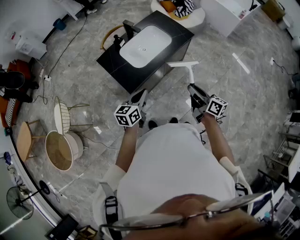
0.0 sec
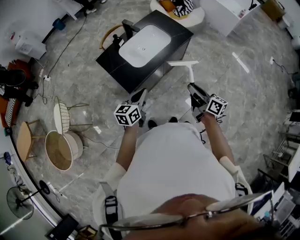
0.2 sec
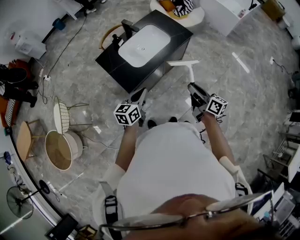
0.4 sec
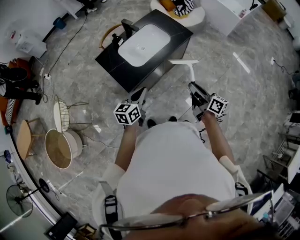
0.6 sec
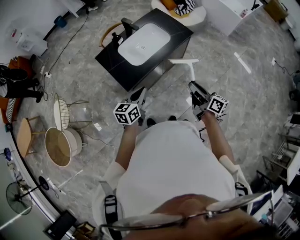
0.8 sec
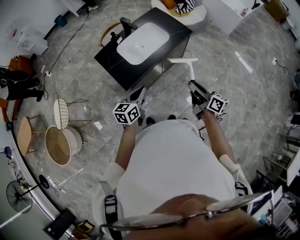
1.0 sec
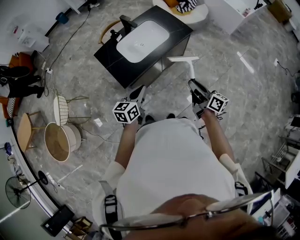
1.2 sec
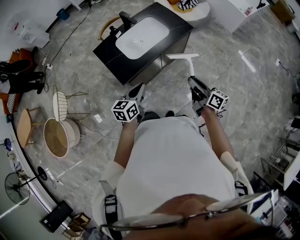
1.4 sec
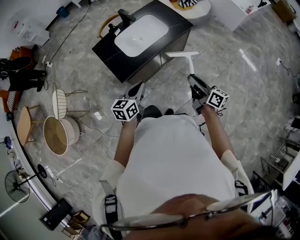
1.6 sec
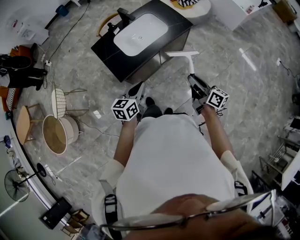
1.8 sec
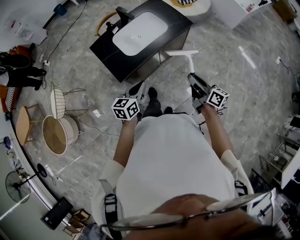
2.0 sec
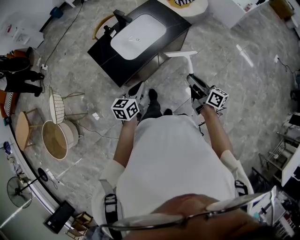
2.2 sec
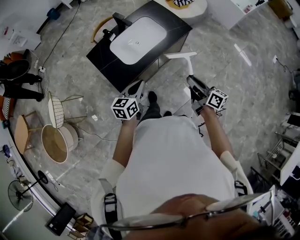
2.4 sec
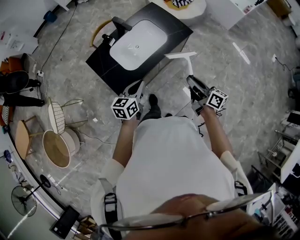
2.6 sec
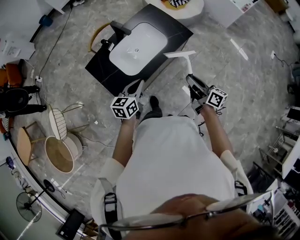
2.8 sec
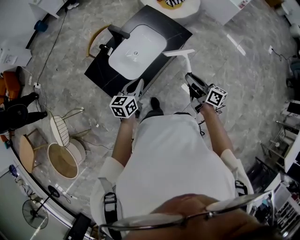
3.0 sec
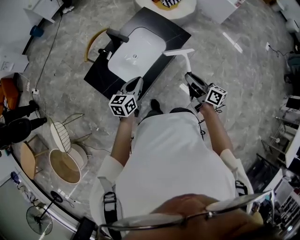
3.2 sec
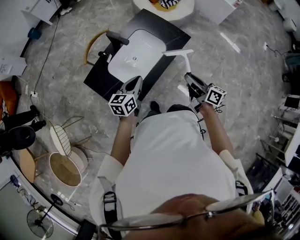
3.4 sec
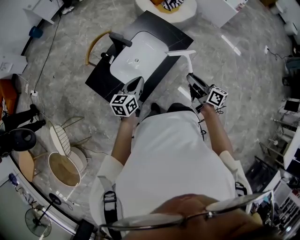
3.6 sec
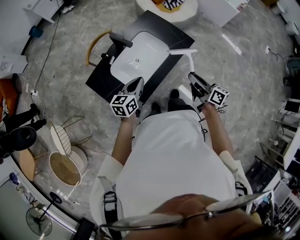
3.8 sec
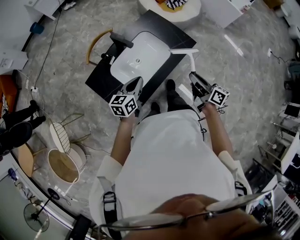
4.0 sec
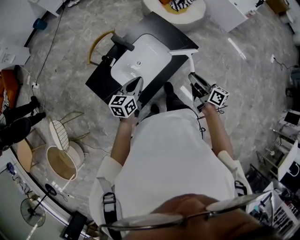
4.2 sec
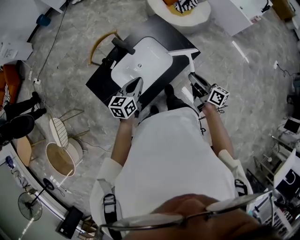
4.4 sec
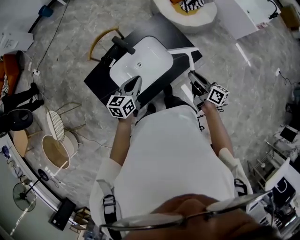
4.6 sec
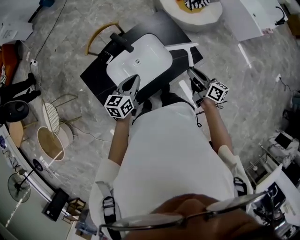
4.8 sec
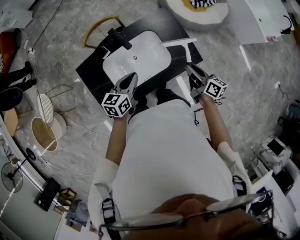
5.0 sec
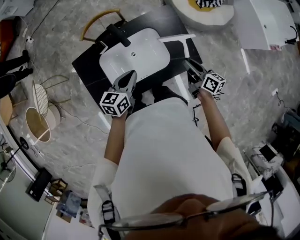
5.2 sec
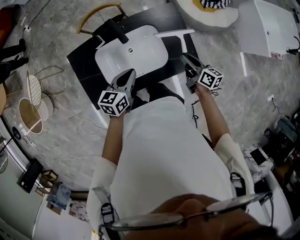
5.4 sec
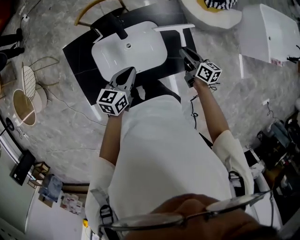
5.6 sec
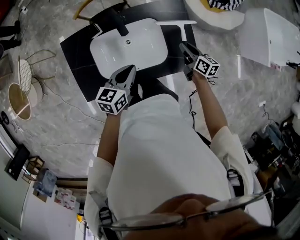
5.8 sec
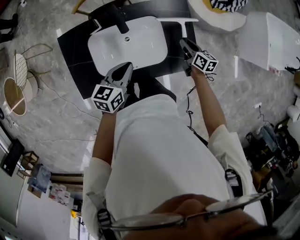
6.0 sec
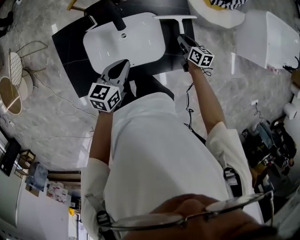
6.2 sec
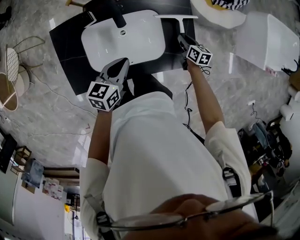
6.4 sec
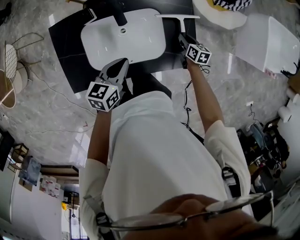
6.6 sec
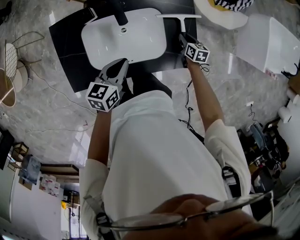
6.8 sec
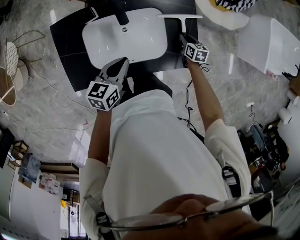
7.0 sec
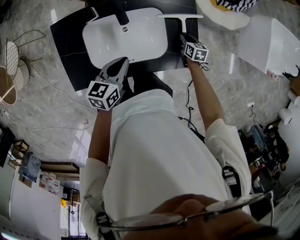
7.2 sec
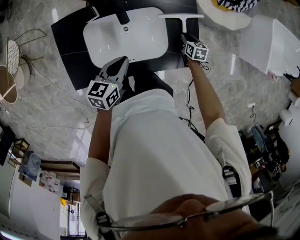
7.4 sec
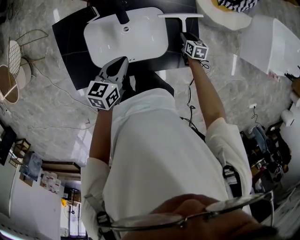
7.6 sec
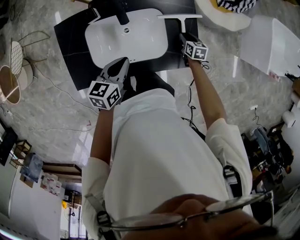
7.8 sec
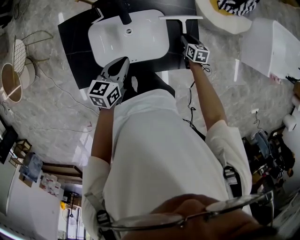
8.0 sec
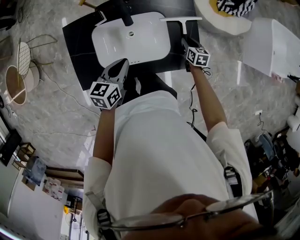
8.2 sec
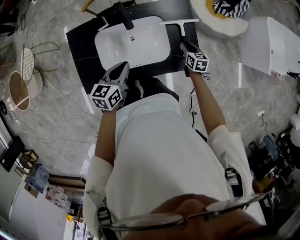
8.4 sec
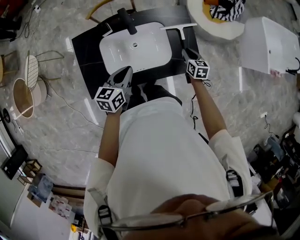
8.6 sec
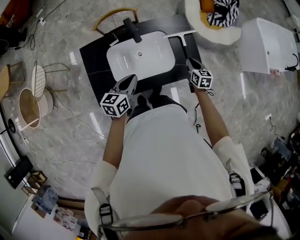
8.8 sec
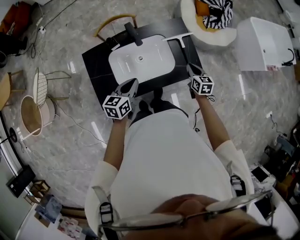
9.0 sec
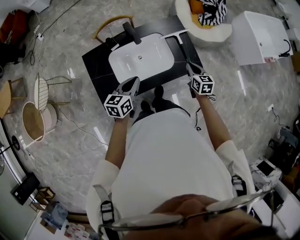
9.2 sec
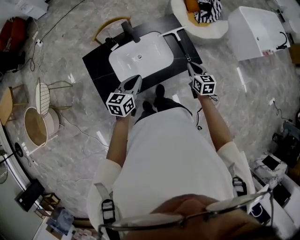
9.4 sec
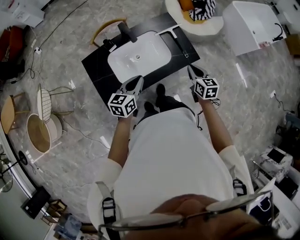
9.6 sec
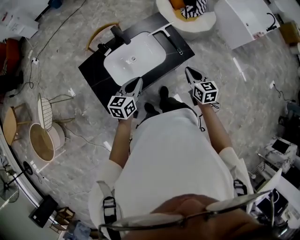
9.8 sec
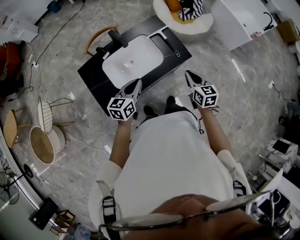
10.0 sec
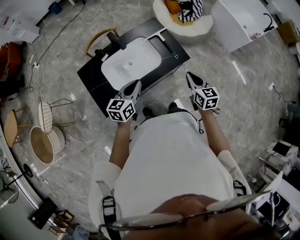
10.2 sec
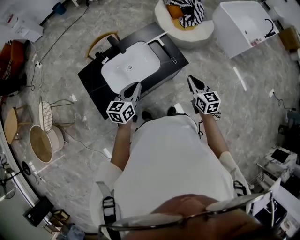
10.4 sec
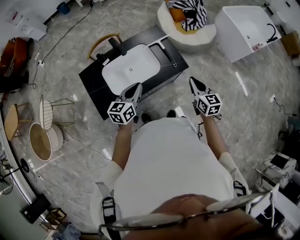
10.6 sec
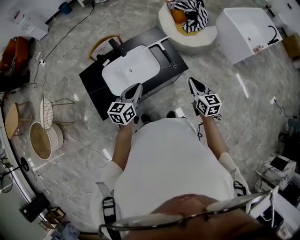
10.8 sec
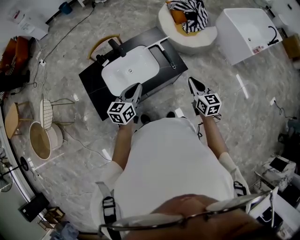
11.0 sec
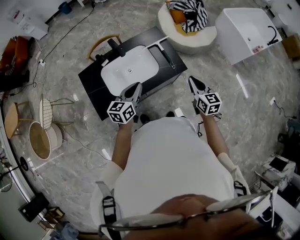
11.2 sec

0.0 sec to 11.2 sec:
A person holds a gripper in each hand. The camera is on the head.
0.0 sec to 1.6 sec: Both grippers move to the right, about 5 cm.
1.6 sec to 3.2 sec: Both grippers move forward, approximately 20 cm.
3.2 sec to 4.8 sec: The left gripper shifts roughly 15 cm forward. The right gripper moves forward, approximately 25 cm.
4.8 sec to 6.4 sec: The right gripper shifts roughly 30 cm downward and forward, and tilts its fingers about 30 degrees downward. The left gripper moves downward, some 5 cm.
6.4 sec to 8.0 sec: There are only small adjustments of the grippers.
8.0 sec to 9.6 sec: The right gripper moves upward and backward, approximately 35 cm, turns by approximately 20 degrees, and closes up. Meanwhile the left gripper travels backward and upward by approximately 15 cm, and changes its angle by approximately 20 degrees.
9.6 sec to 11.2 sec: The right gripper moves to the right and upward, roughly 10 cm. Meanwhile the left gripper goes about 10 cm to the right.

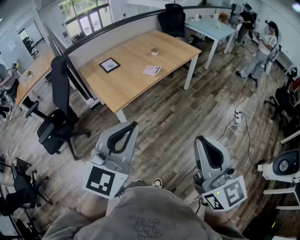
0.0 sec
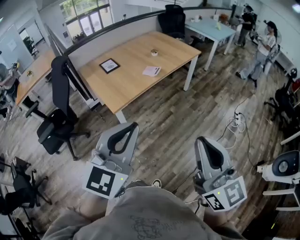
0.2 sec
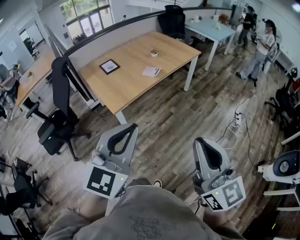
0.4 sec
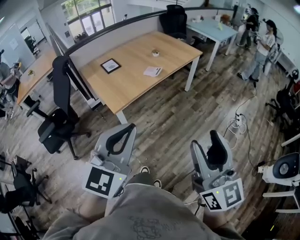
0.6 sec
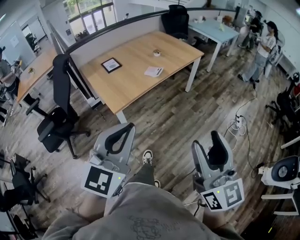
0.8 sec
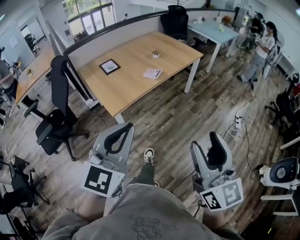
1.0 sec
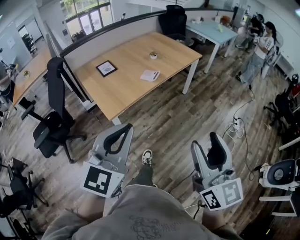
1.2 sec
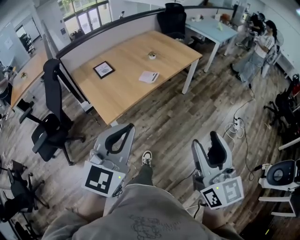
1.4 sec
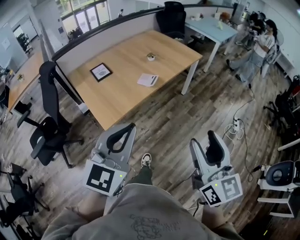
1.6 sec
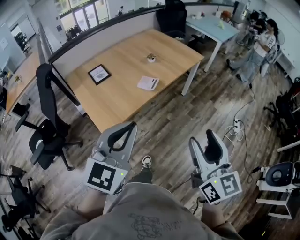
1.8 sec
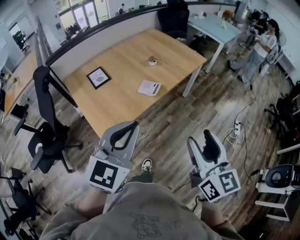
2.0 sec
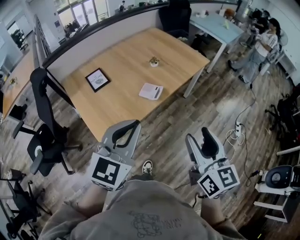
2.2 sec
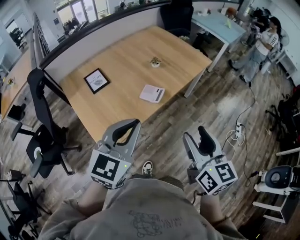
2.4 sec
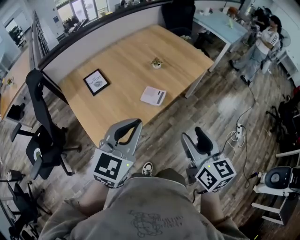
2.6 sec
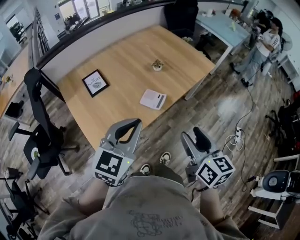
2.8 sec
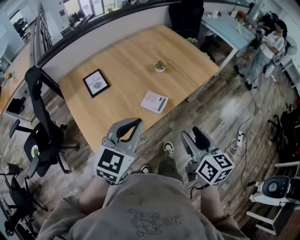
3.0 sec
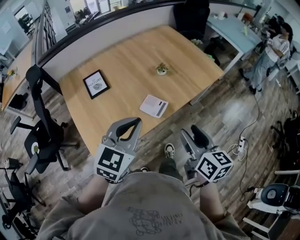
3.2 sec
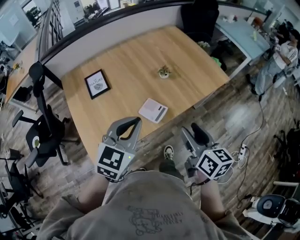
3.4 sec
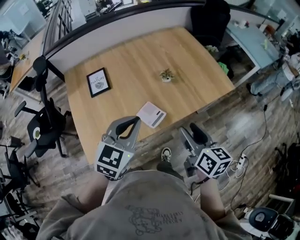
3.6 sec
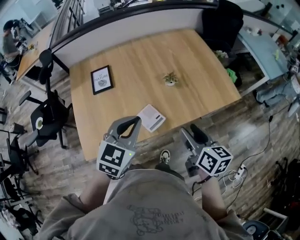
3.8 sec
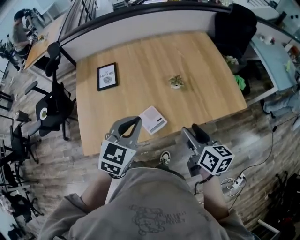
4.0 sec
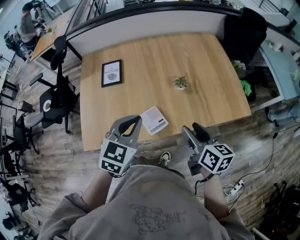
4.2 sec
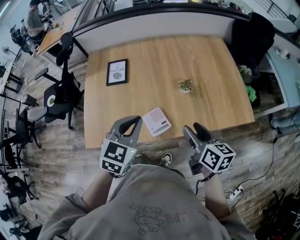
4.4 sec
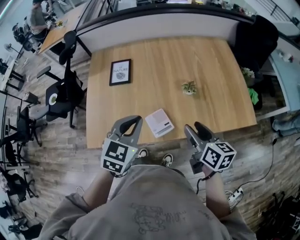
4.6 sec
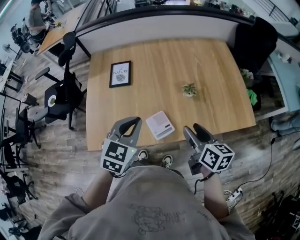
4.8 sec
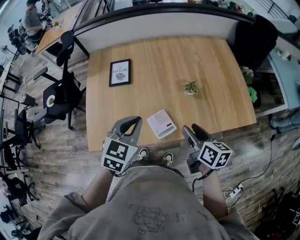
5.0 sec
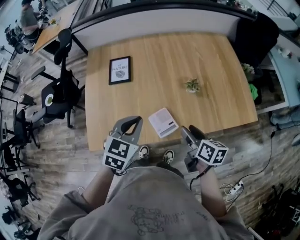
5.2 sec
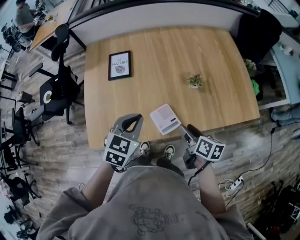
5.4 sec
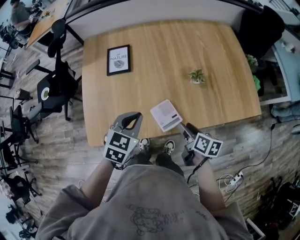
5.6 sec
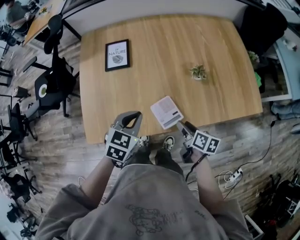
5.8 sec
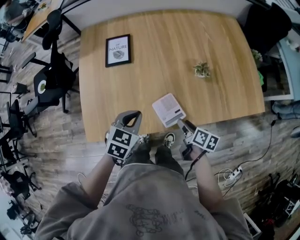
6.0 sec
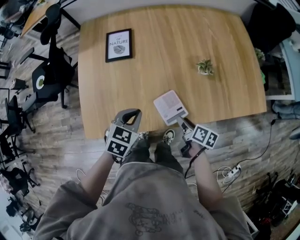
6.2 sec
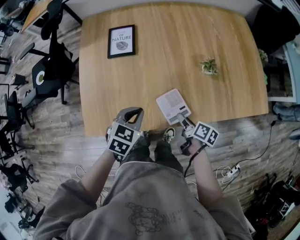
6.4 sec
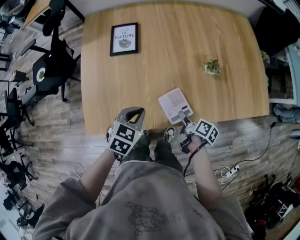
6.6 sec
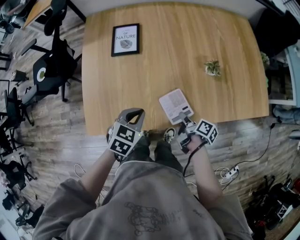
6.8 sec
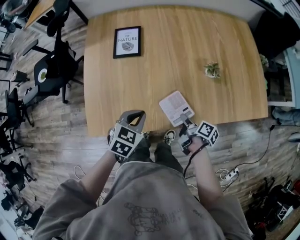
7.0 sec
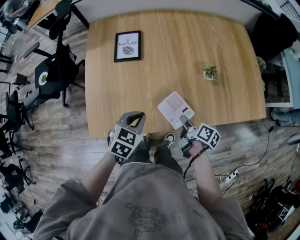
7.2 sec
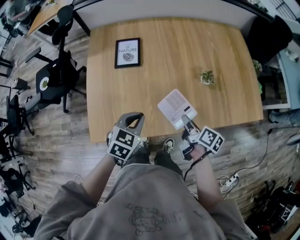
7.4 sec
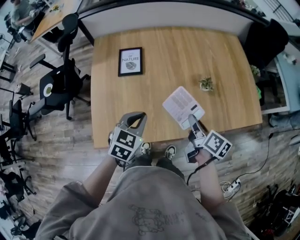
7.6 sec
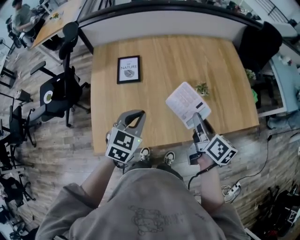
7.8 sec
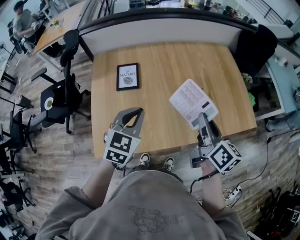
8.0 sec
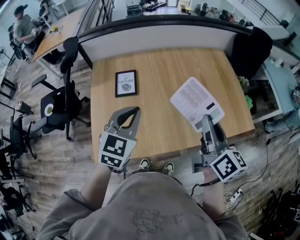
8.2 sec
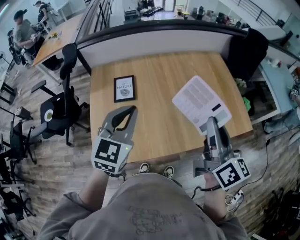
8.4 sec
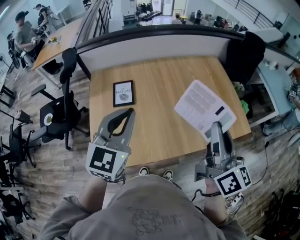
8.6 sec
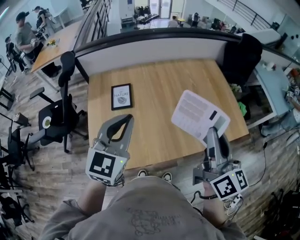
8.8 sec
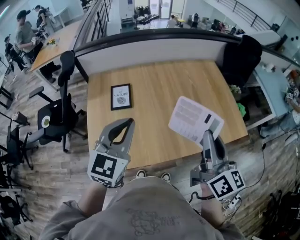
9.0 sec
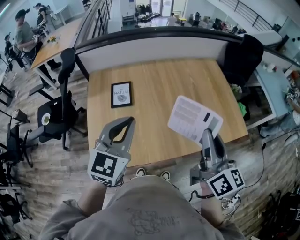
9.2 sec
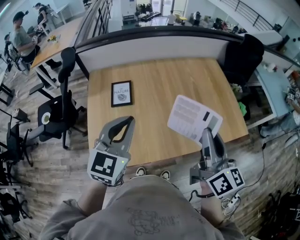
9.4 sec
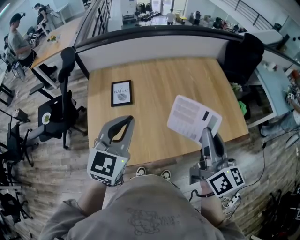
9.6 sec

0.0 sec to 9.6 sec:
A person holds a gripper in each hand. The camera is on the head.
0.0 sec to 1.6 sec: The two grippers go roughly 20 cm forward. The right gripper opens its fingers.
1.6 sec to 3.2 sec: Both grippers travel together forward, some 40 cm. The right gripper changes its angle by roughly 30 degrees.
3.2 sec to 4.8 sec: The left gripper changes place by roughly 15 cm, and changes its angle by about 30 degrees. Meanwhile the right gripper changes place by roughly 25 cm, and rotates approximately 30 degrees.
4.8 sec to 6.4 sec: Both grippers travel together downward, roughly 20 cm. The right gripper changes its angle by about 40 degrees. The left gripper changes its angle by about 20 degrees.
6.4 sec to 8.0 sec: The right gripper moves upward, about 35 cm, turns by approximately 40 degrees, and closes its fingers. The left gripper is displaced upward by some 20 cm, and turns by some 20 degrees.
8.0 sec to 9.6 sec: The grippers both shift upward by some 10 cm.

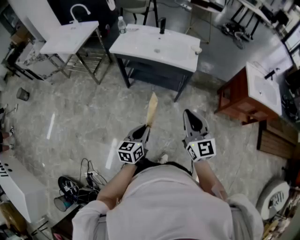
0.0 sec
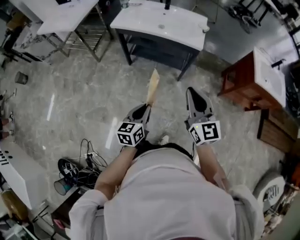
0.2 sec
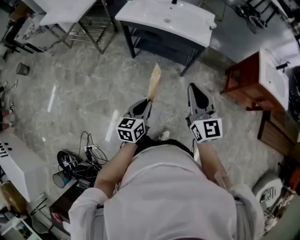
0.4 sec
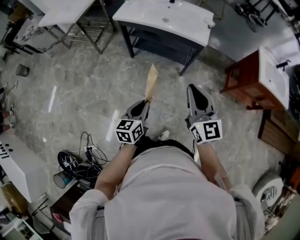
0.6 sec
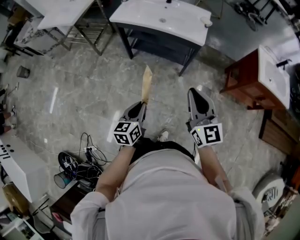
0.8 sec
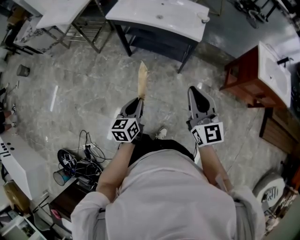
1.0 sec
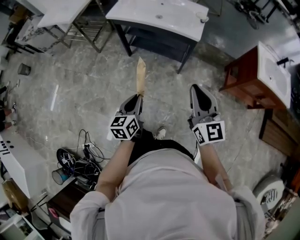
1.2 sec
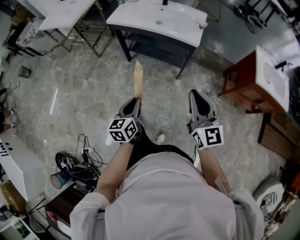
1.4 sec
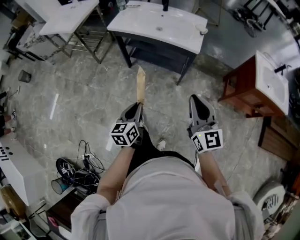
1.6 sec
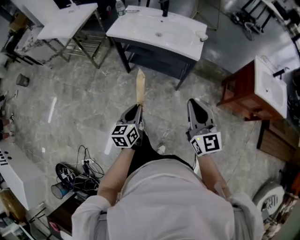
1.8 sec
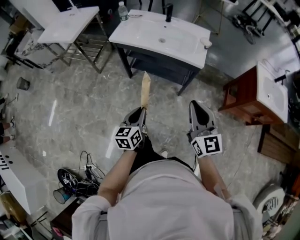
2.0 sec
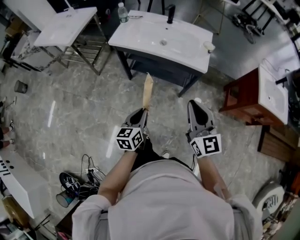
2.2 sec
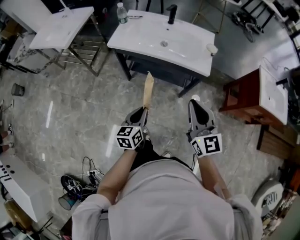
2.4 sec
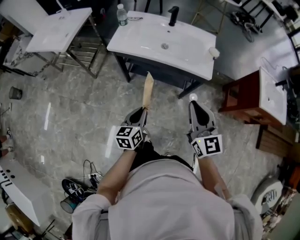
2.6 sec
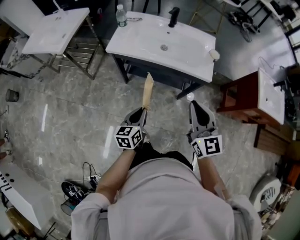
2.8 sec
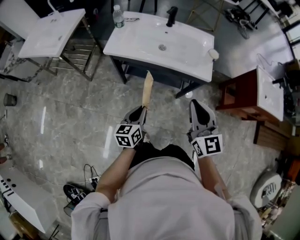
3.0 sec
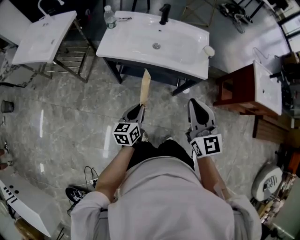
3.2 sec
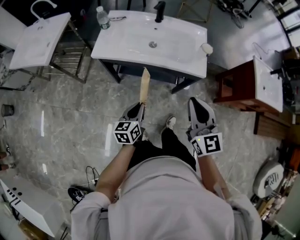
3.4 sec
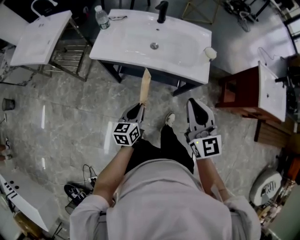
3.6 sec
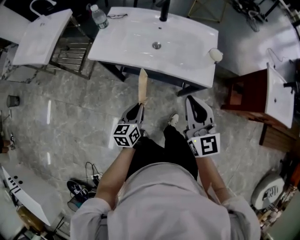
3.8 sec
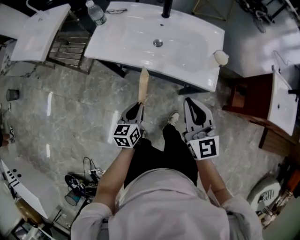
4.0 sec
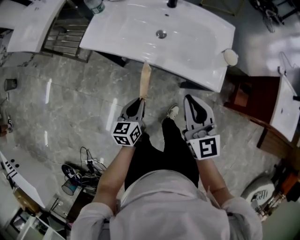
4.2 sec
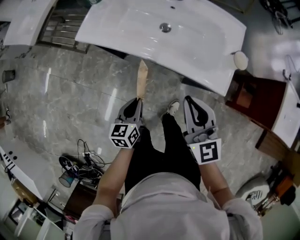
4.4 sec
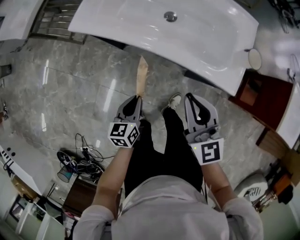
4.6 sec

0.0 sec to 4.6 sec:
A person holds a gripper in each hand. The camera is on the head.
0.0 sec to 1.6 sec: The right gripper is displaced forward by roughly 5 cm. The left gripper moves forward, roughly 10 cm.
1.6 sec to 3.0 sec: Both grippers move forward and to the left, roughly 25 cm.
3.0 sec to 4.6 sec: The two grippers go roughly 20 cm downward and forward.
